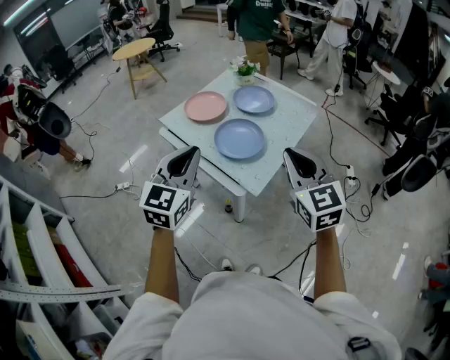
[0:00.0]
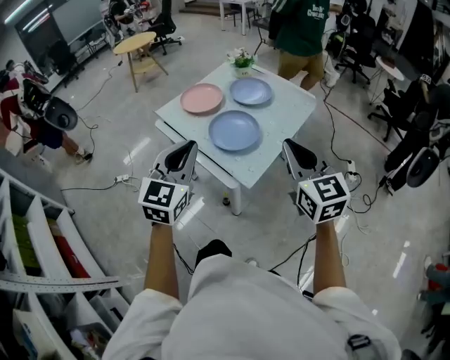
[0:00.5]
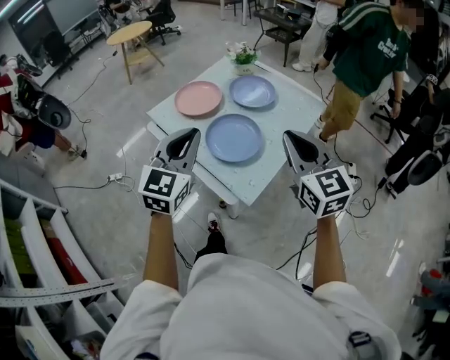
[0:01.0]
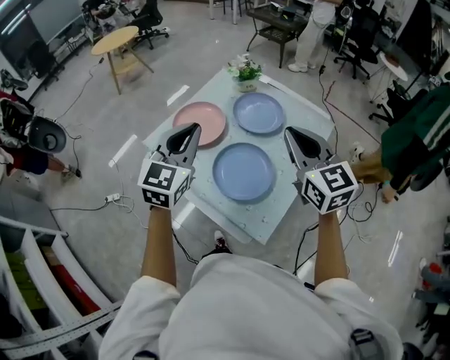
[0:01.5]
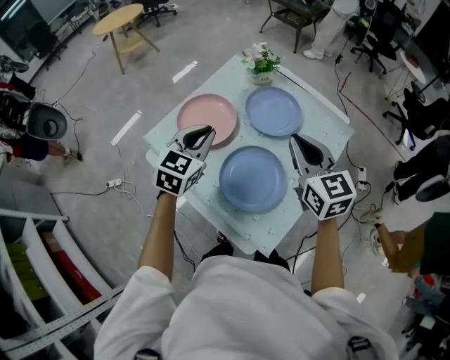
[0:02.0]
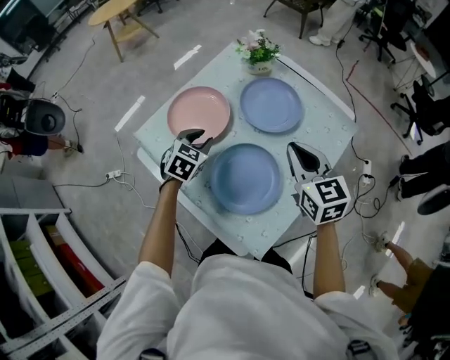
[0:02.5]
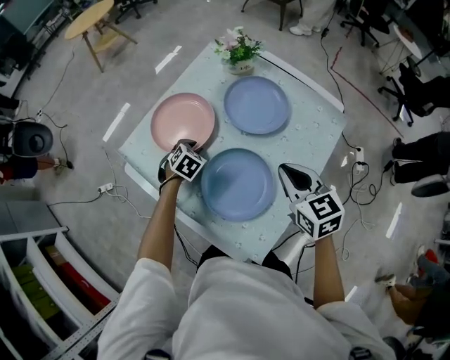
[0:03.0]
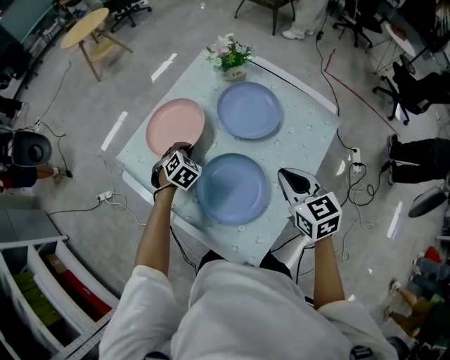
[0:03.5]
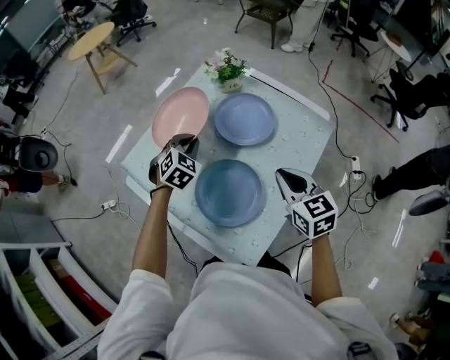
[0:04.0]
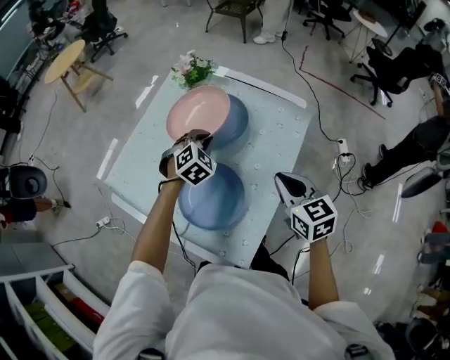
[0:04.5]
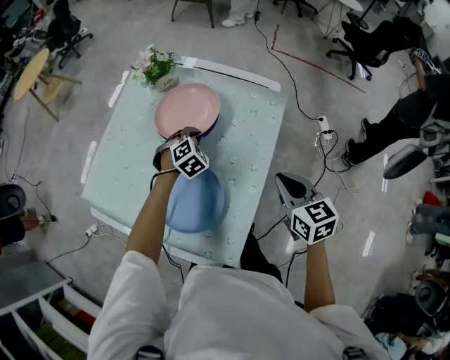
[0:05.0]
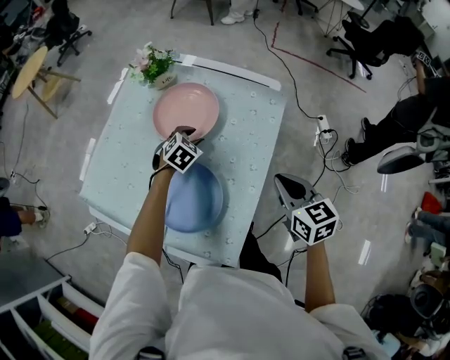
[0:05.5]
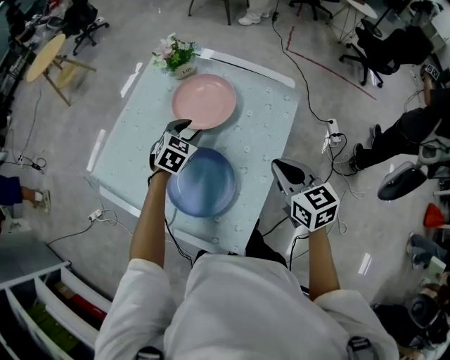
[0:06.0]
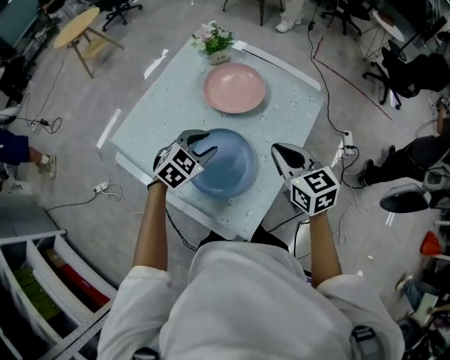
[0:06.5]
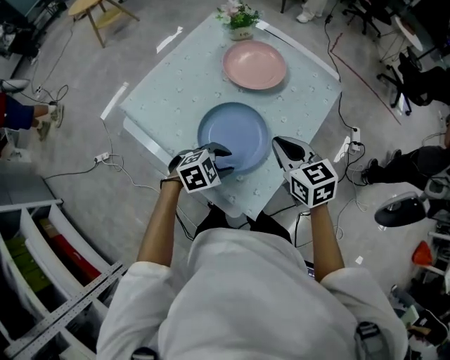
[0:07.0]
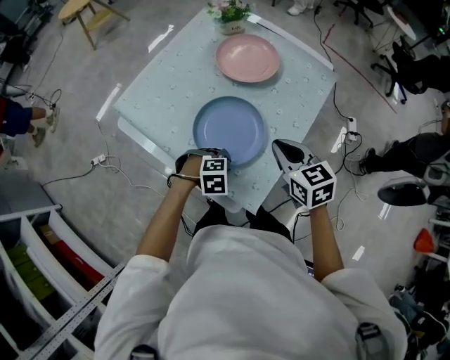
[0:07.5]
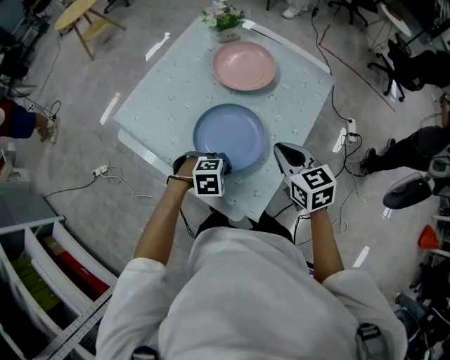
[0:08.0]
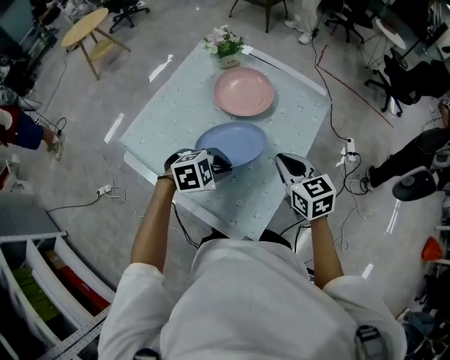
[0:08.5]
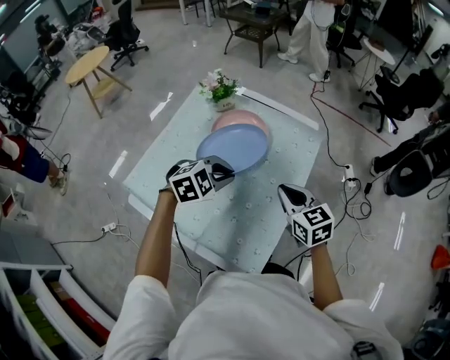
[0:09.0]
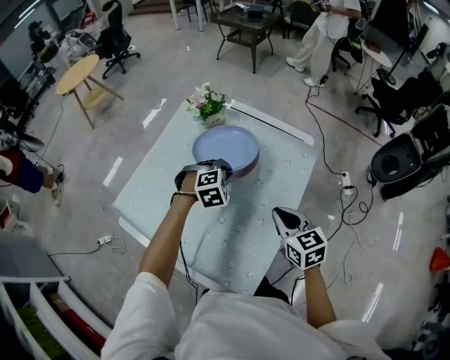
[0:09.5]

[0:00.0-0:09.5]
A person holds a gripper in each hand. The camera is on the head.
0:00.0 to 0:02.0: The two grippers go some 40 cm forward.
0:02.0 to 0:04.0: The left gripper is displaced downward, forward and to the right by approximately 15 cm, rotates some 30 degrees, and opens and closes again. Meanwhile the right gripper moves downward and to the right, about 10 cm.
0:04.0 to 0:05.5: The right gripper shifts some 15 cm to the right, while the left gripper heads to the right and downward, covering some 25 cm, turns by approximately 20 degrees, and opens its fingers.
0:05.5 to 0:07.5: The right gripper travels to the left and backward by approximately 15 cm; the left gripper heads backward, covering some 35 cm, and turns by some 30 degrees.
0:07.5 to 0:09.5: The right gripper goes approximately 10 cm forward. The left gripper is displaced forward and upward by some 35 cm, and turns by about 20 degrees.

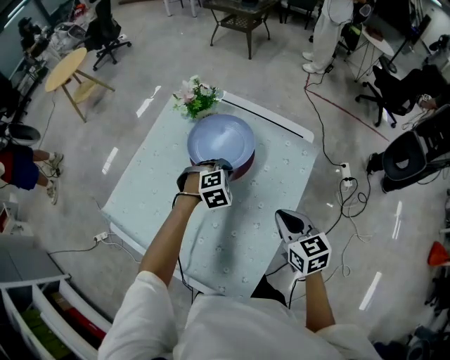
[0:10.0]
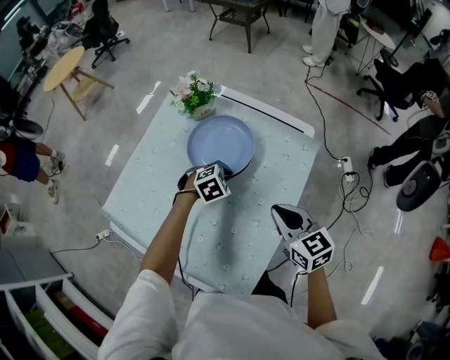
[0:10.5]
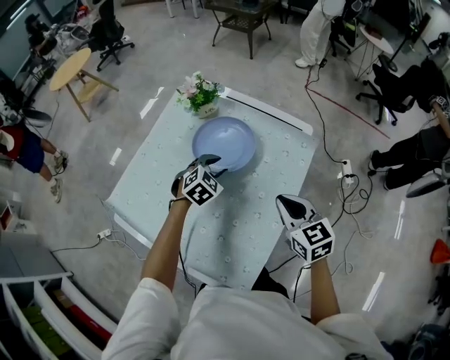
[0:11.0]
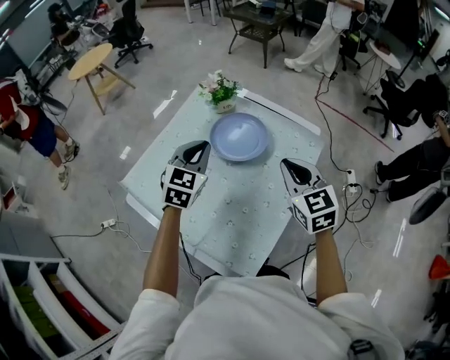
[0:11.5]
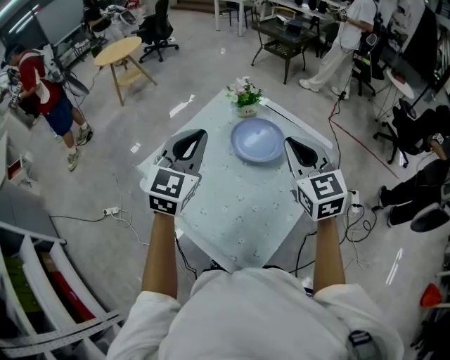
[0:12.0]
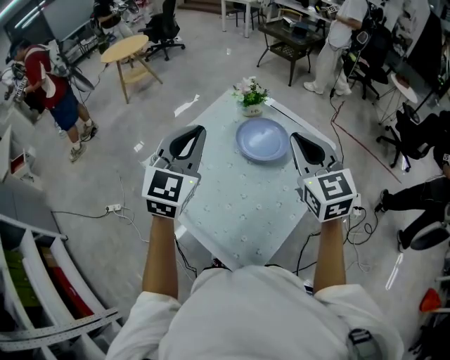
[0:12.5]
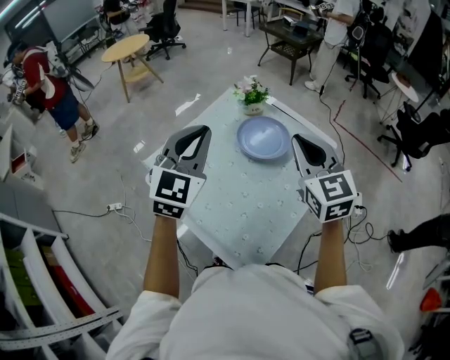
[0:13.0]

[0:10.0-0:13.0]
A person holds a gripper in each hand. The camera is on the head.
0:10.0 to 0:11.5: The right gripper goes some 10 cm upward, and rotates about 20 degrees. Meanwhile the left gripper travels upward, to the left and backward by about 25 cm, points its fingers roughly 40 degrees further upward, and opens, then closes again.
0:11.5 to 0:13.0: The right gripper is displaced upward and to the left by approximately 15 cm. Meanwhile the left gripper shifts roughly 20 cm upward, backward and to the left.

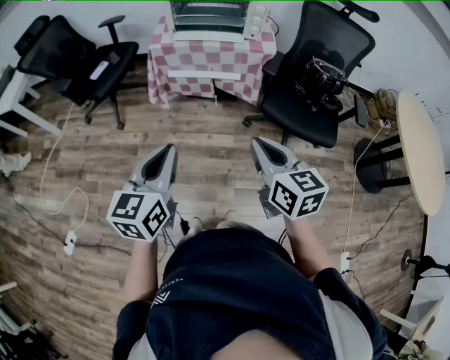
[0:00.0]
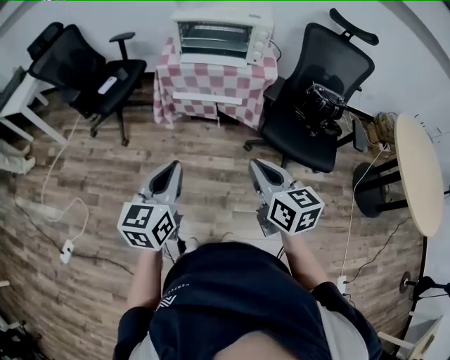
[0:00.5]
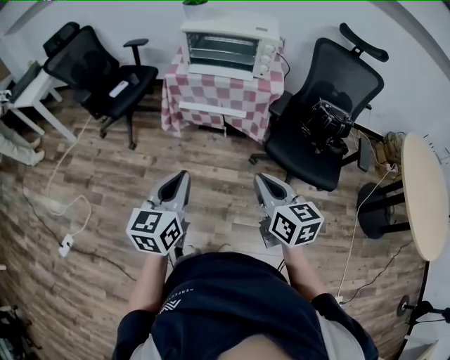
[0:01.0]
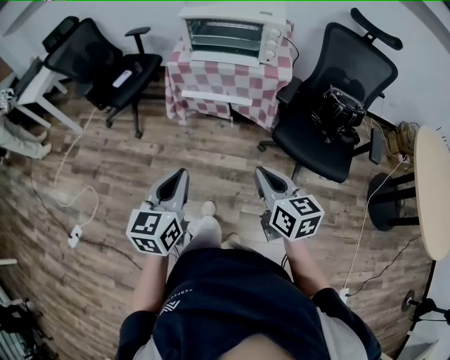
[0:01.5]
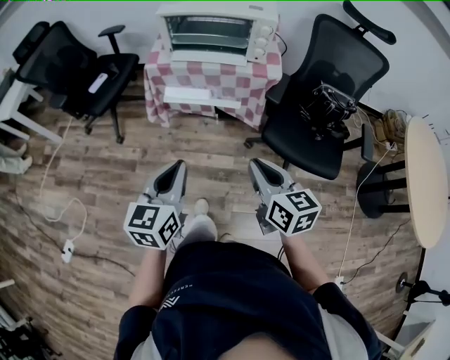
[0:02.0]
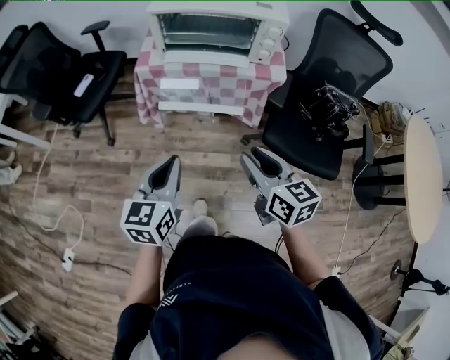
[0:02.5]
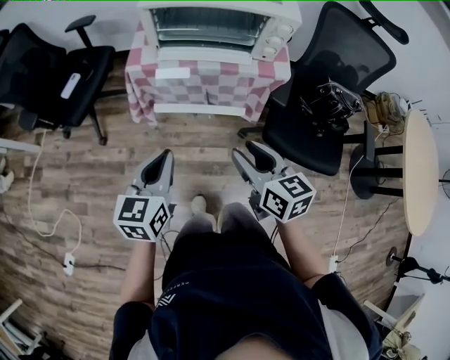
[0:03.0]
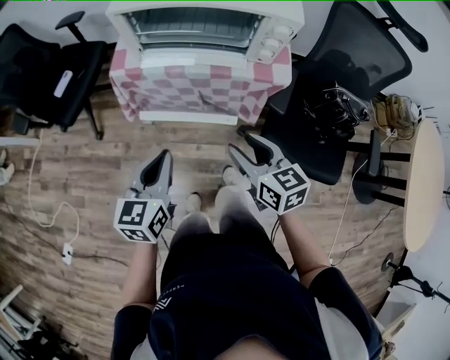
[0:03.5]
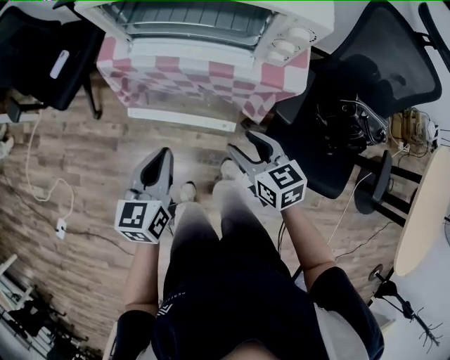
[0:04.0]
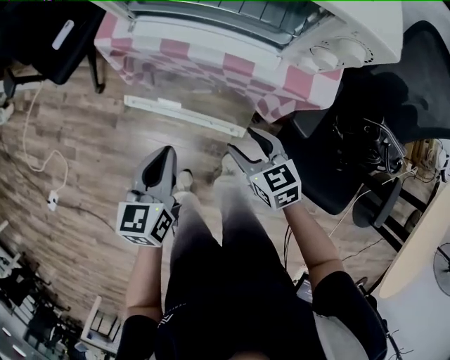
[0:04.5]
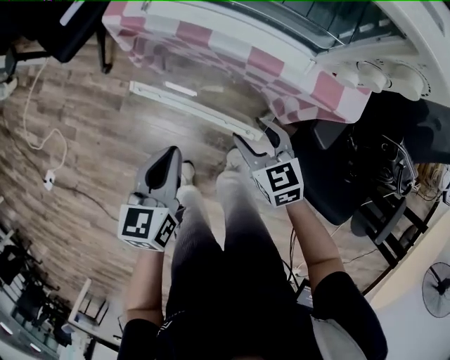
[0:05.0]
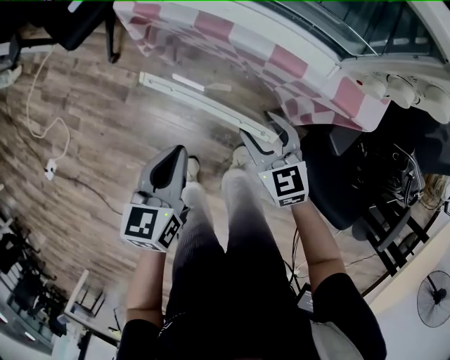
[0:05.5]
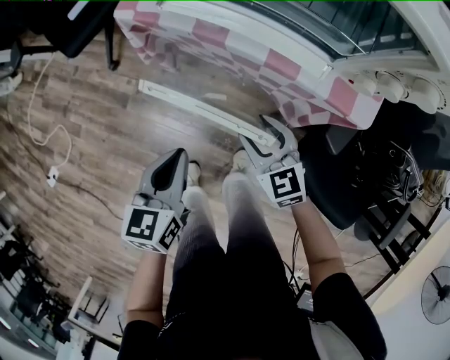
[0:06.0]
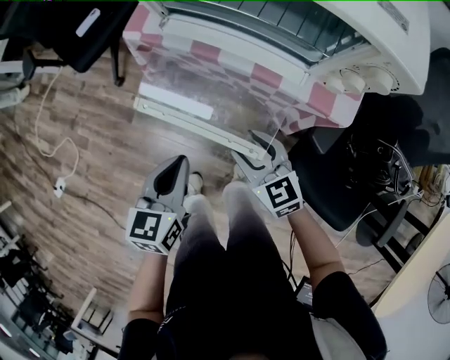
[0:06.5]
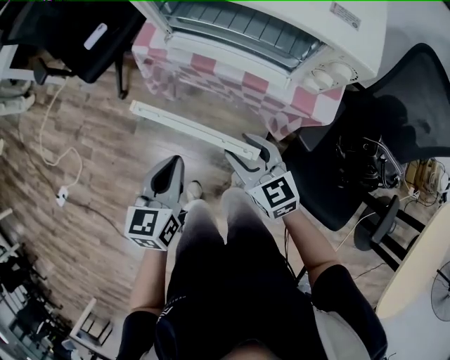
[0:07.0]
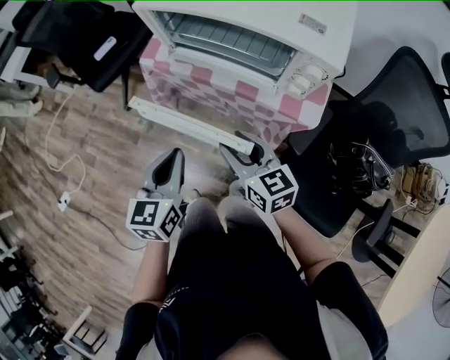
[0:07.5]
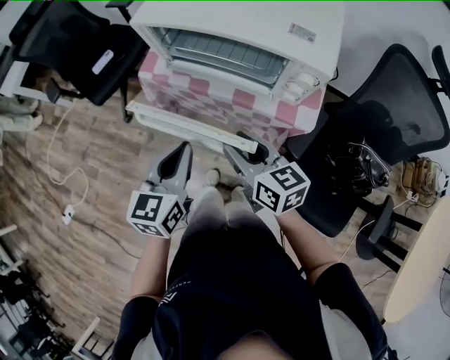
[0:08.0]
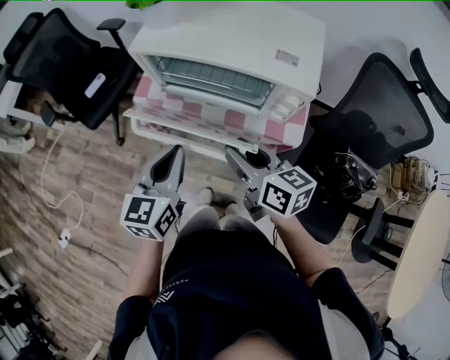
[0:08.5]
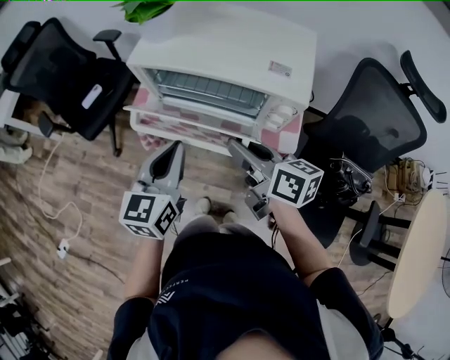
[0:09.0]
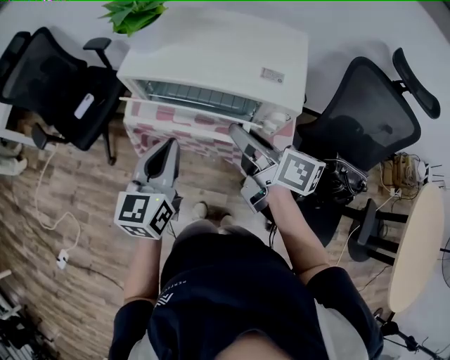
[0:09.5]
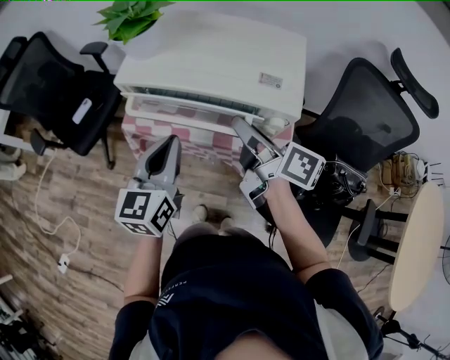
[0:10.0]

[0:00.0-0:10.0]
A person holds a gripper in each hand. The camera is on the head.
0:00.0 to 0:02.0: The left gripper shifts approximately 10 cm forward and to the right. The right gripper is displaced forward by some 10 cm.
0:02.0 to 0:04.0: Both grippers move forward and downward, about 30 cm. The right gripper rotates about 20 degrees, and opens.
0:04.0 to 0:06.0: The right gripper heads downward and forward, covering approximately 10 cm, and rotates roughly 30 degrees. The left gripper moves downward, roughly 10 cm.
0:06.0 to 0:08.0: The two grippers go roughly 20 cm upward. The right gripper changes its angle by some 30 degrees.
0:08.0 to 0:10.0: The left gripper moves forward and upward, approximately 15 cm, while the right gripper is displaced upward, forward and to the right by about 20 cm, and swivels approximately 40 degrees.

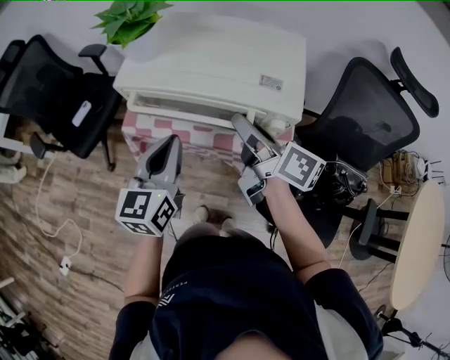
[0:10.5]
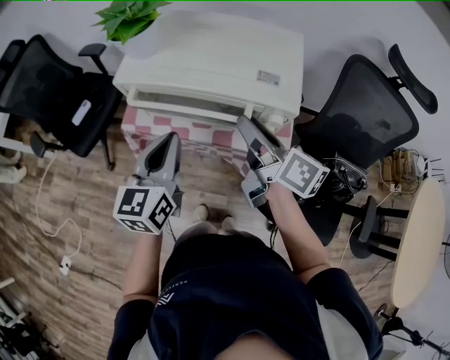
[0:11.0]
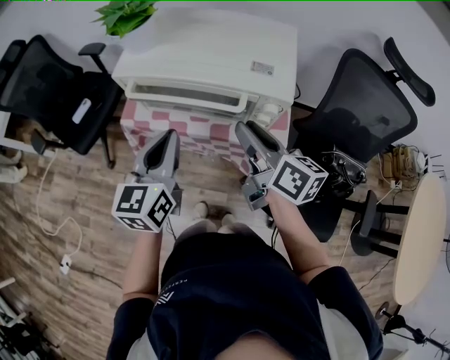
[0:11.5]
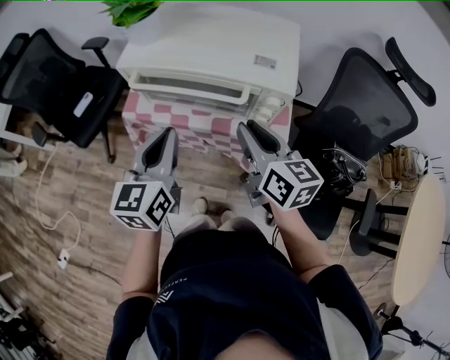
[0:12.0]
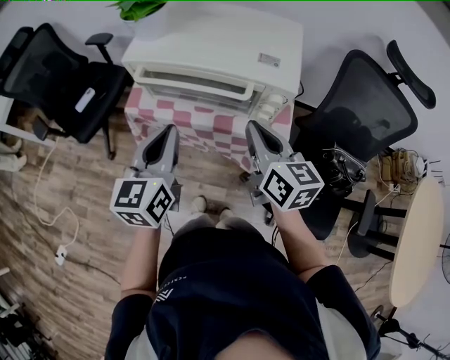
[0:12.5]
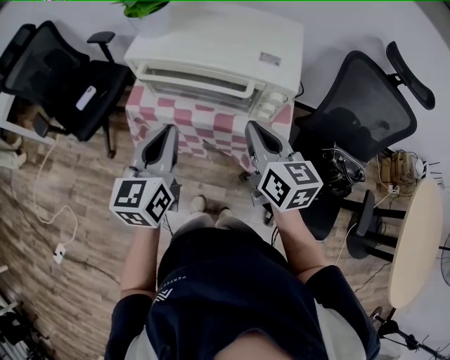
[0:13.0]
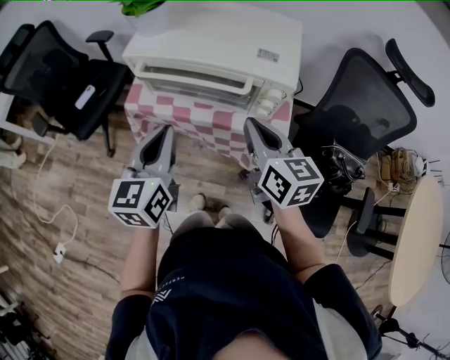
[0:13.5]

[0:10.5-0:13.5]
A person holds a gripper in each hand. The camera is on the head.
0:10.5 to 0:12.0: The right gripper heads backward, covering roughly 5 cm, swivels roughly 40 degrees, and closes up.
0:12.0 to 0:13.5: The right gripper closes up.
